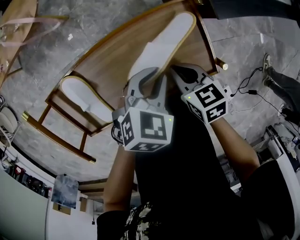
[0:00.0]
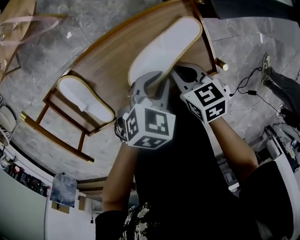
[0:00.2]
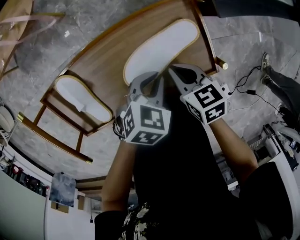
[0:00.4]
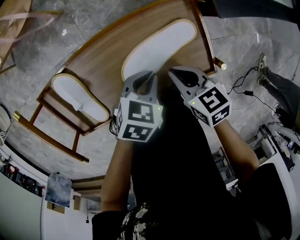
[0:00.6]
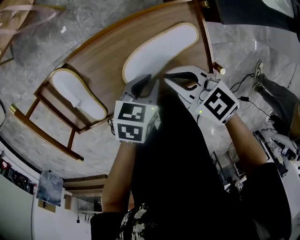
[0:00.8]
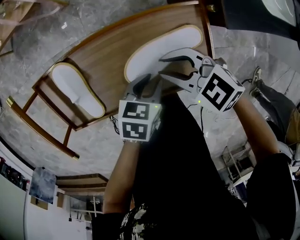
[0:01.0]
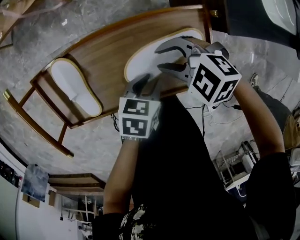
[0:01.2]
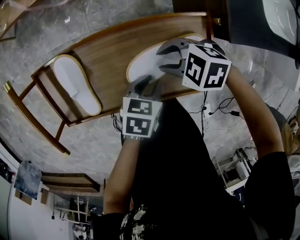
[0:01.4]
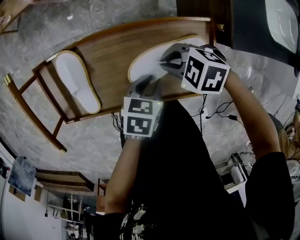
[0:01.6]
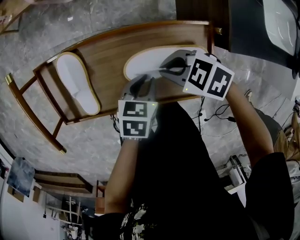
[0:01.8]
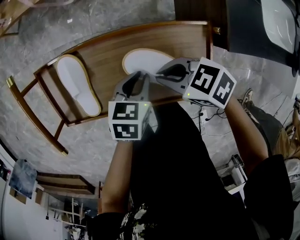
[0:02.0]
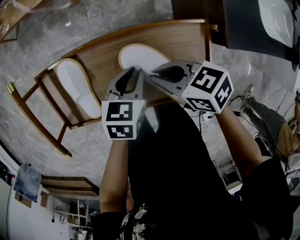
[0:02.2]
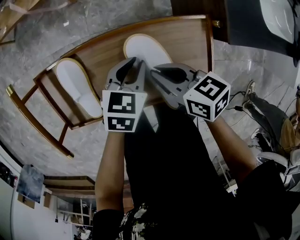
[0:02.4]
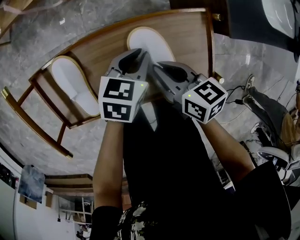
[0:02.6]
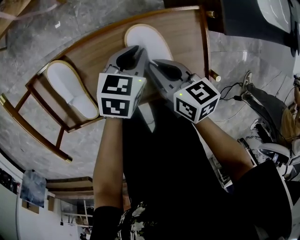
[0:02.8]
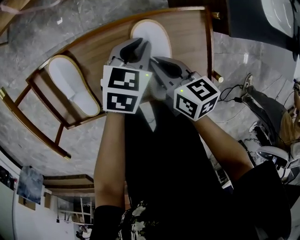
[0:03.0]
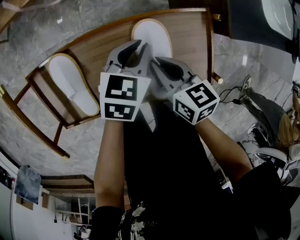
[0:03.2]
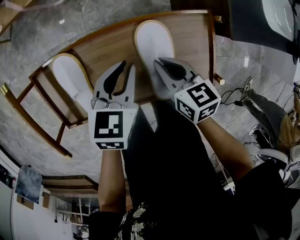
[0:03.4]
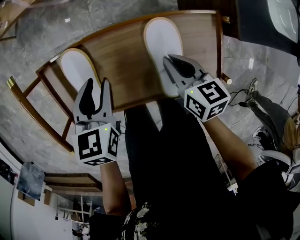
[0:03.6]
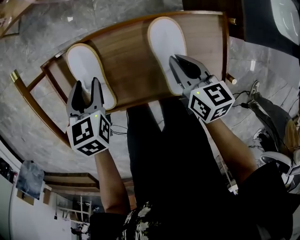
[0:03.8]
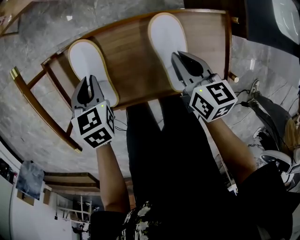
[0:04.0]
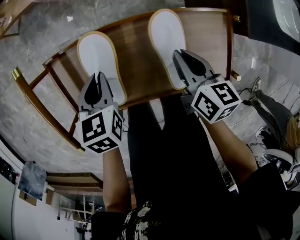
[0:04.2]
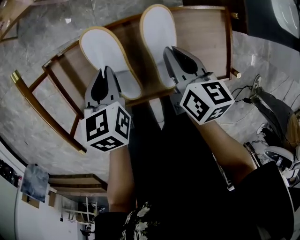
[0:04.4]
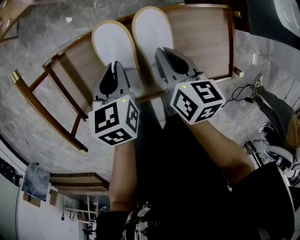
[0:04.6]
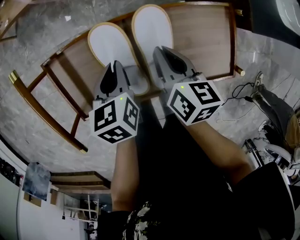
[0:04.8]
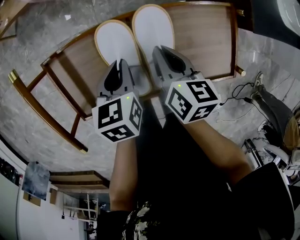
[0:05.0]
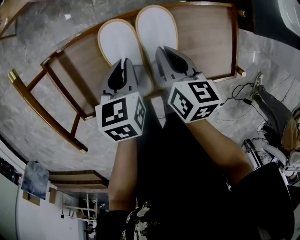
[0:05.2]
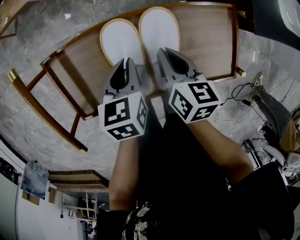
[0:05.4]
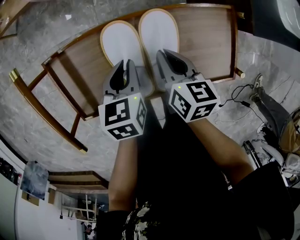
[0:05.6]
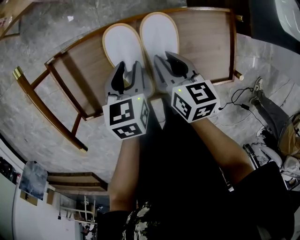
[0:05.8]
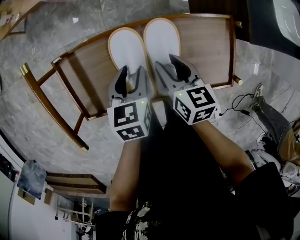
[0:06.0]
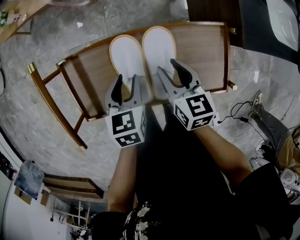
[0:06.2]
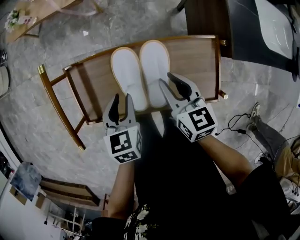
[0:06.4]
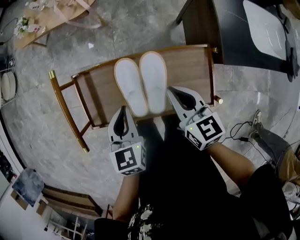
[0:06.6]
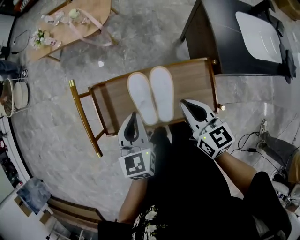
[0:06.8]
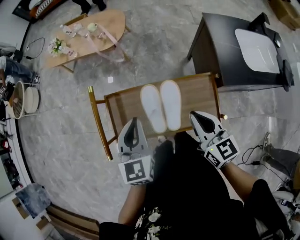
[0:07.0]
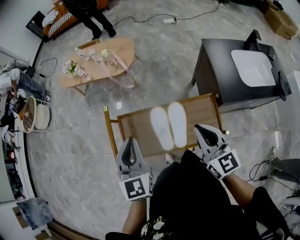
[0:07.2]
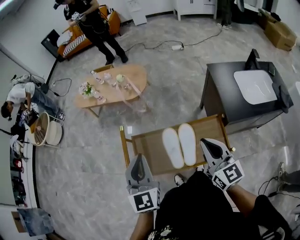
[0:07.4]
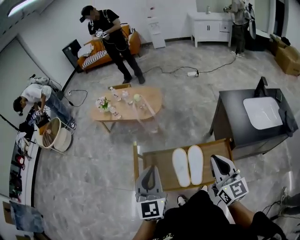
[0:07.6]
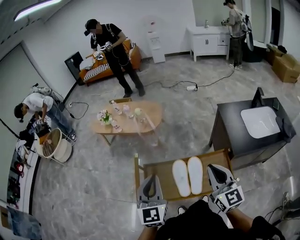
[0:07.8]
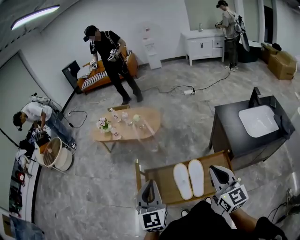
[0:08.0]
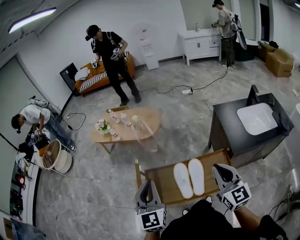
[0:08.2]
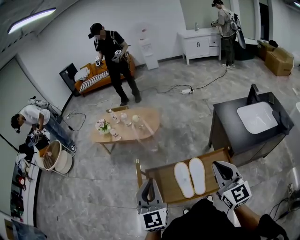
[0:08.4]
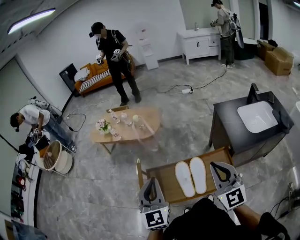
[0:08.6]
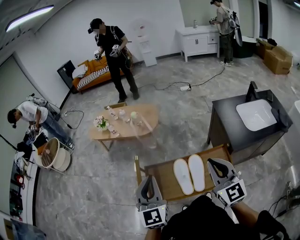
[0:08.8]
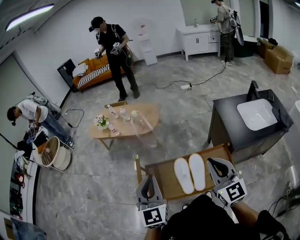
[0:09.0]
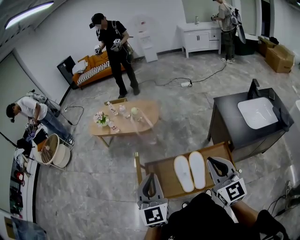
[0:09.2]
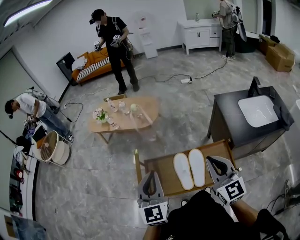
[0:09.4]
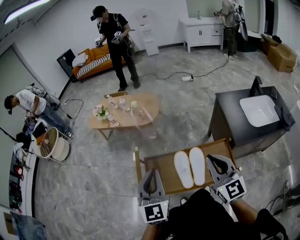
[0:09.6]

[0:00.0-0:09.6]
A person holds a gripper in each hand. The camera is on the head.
0:00.0 to 0:01.6: The right gripper shifts by about 5 cm, turns by some 70 degrees, and opens, then closes again. Meanwhile the left gripper goes roughly 5 cm downward, and rotates around the line of its fingers by some 40 degrees, counterclockwise from behind.
0:01.6 to 0:03.2: The left gripper shifts by about 10 cm, and turns by roughly 20 degrees. The right gripper changes its angle by approximately 70 degrees.
0:03.2 to 0:04.8: The right gripper travels to the left by some 5 cm, and changes its angle by about 20 degrees. The left gripper goes approximately 20 cm to the left, rotates some 40 degrees, and opens, then closes again.
0:04.8 to 0:06.4: The two grippers go approximately 5 cm upward. The right gripper turns by approximately 30 degrees, and opens its fingers; the left gripper opens up.
0:06.4 to 0:08.0: The two grippers go some 30 cm upward. The left gripper points its fingers about 40 degrees further upward, and closes. The right gripper points its fingers about 30 degrees further upward, and closes its fingers.
0:08.0 to 0:09.6: There are only small adjustments of the grippers.

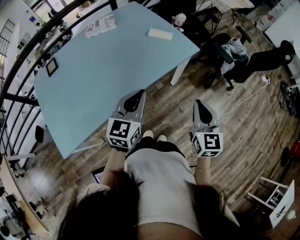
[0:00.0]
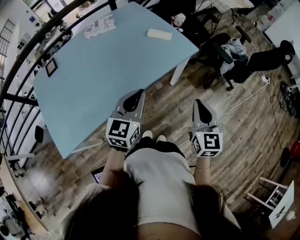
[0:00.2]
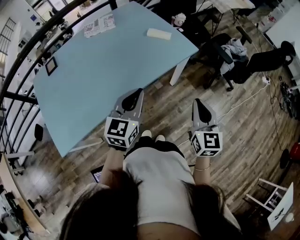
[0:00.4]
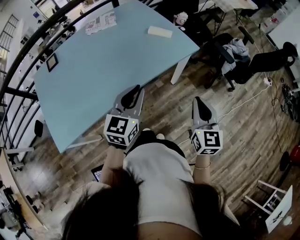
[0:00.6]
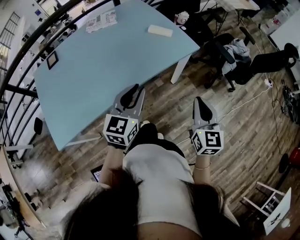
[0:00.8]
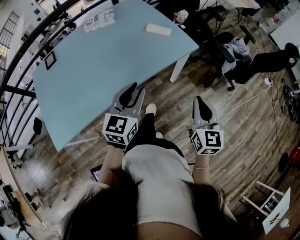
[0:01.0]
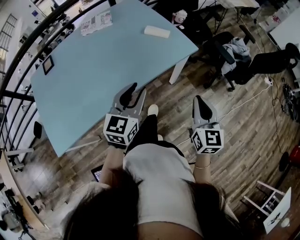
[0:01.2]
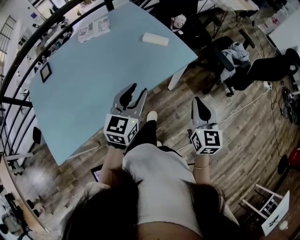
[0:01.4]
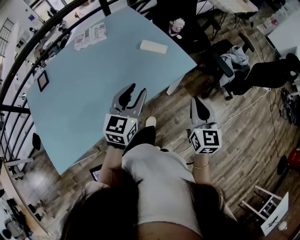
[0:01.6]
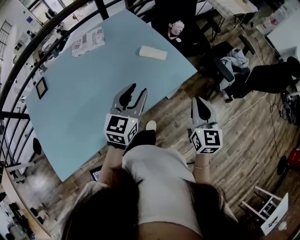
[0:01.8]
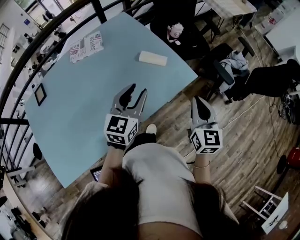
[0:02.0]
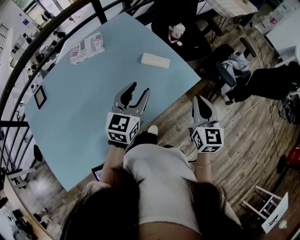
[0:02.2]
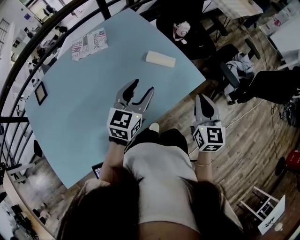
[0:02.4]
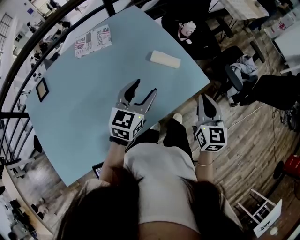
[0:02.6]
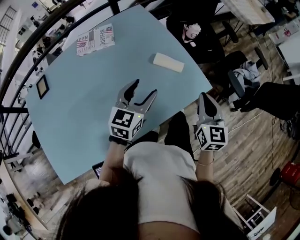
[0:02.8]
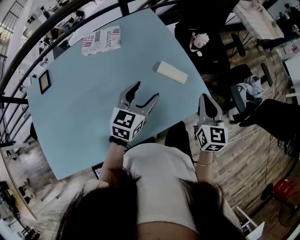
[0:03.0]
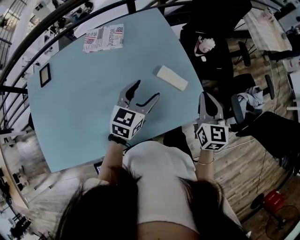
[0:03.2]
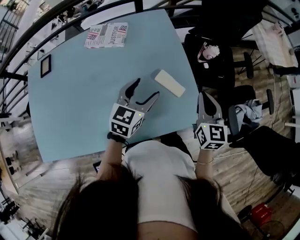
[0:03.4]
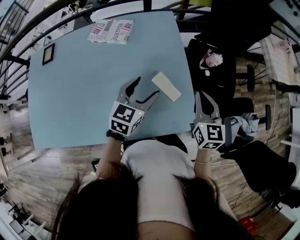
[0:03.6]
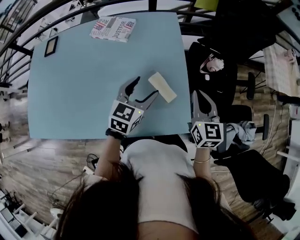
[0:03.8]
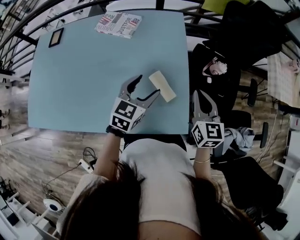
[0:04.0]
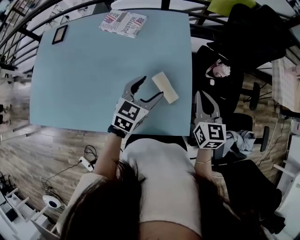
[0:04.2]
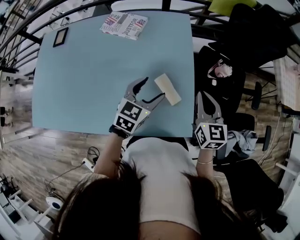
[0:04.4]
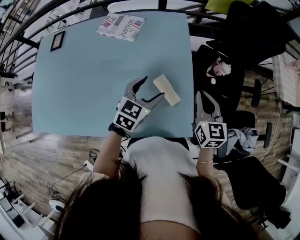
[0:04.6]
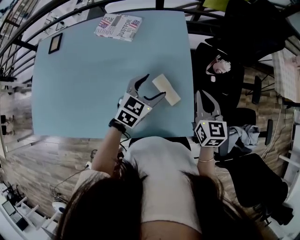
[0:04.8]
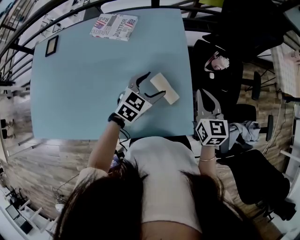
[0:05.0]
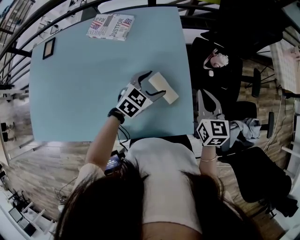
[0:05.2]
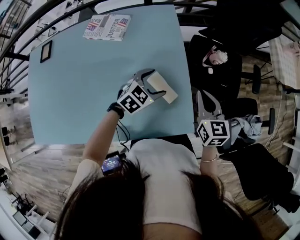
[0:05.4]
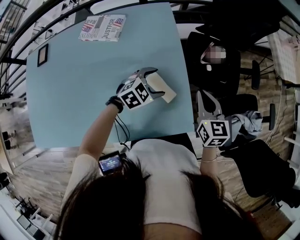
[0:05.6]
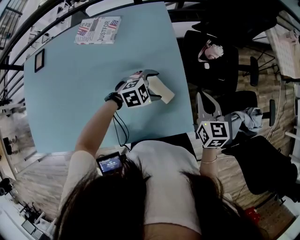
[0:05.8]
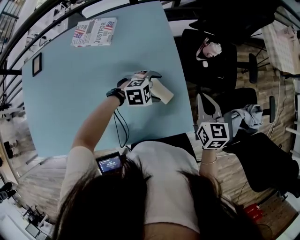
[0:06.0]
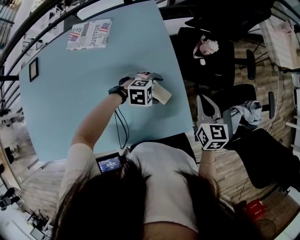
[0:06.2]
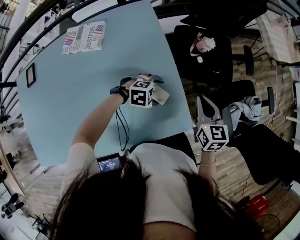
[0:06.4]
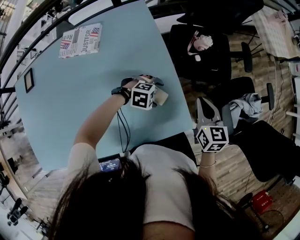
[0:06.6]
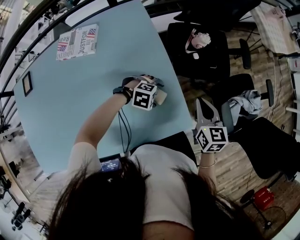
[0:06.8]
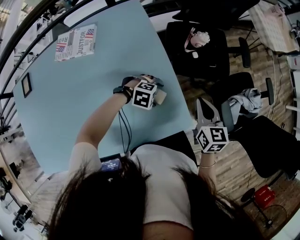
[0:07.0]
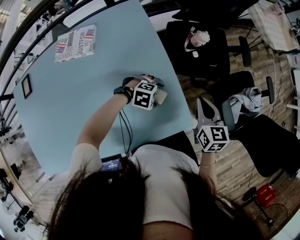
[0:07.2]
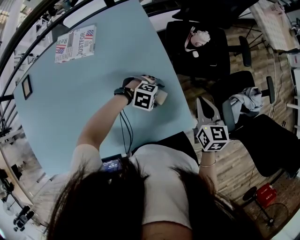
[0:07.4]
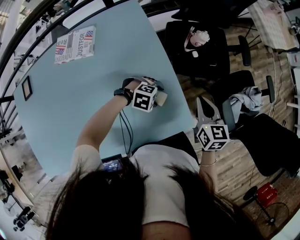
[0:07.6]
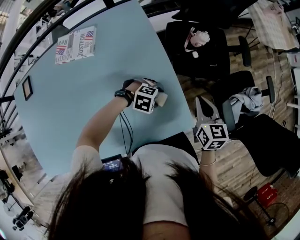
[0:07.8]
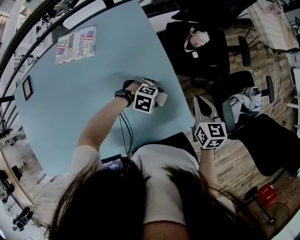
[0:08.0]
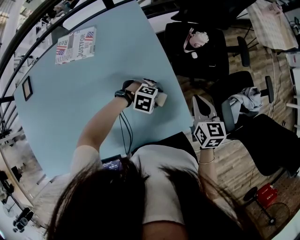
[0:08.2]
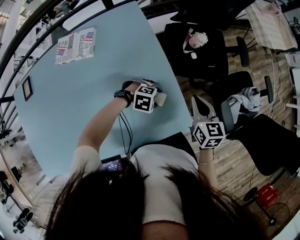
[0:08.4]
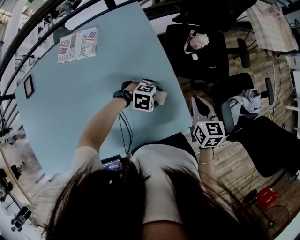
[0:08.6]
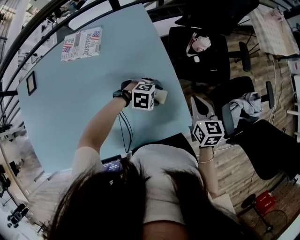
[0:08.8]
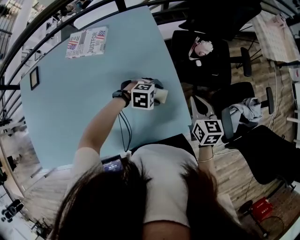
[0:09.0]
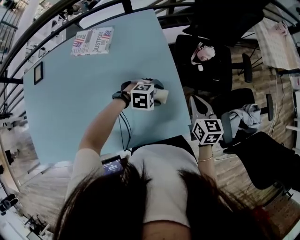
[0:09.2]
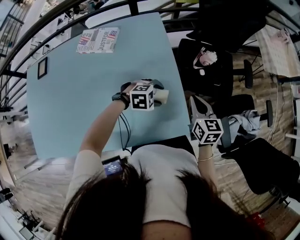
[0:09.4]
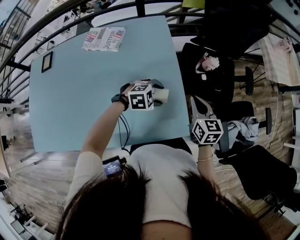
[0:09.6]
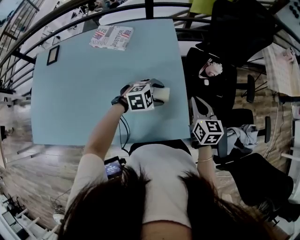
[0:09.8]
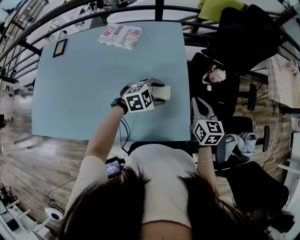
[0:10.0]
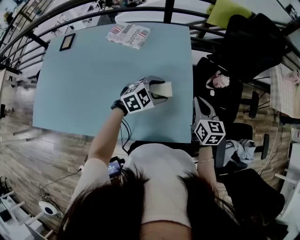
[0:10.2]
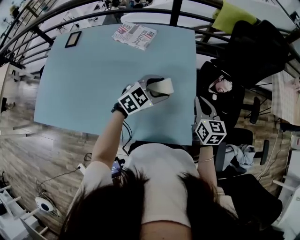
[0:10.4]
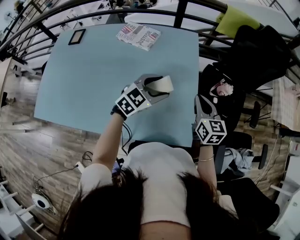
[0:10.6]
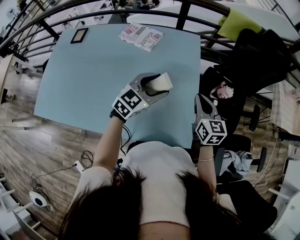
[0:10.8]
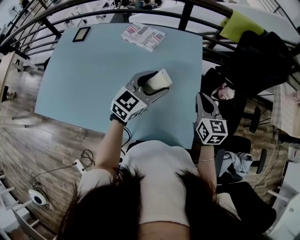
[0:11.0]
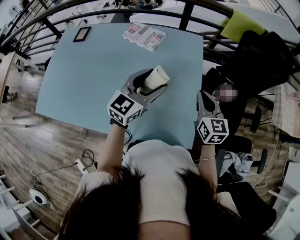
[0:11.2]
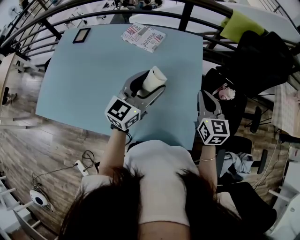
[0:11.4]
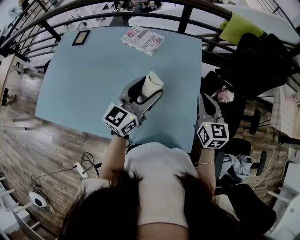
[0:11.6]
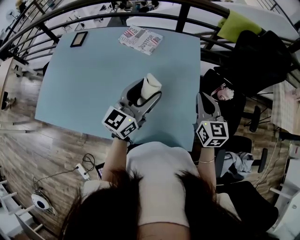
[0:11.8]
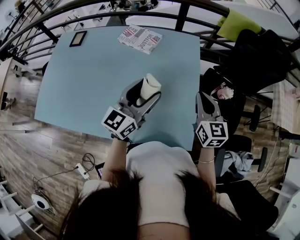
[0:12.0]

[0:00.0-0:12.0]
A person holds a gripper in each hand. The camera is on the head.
0:00.0 to 0:01.6: Both grippers move forward, approximately 15 cm.
0:01.6 to 0:03.0: The grippers both shift forward by roughly 20 cm. The left gripper opens its fingers.
0:03.0 to 0:04.4: The right gripper moves approximately 20 cm, and swivels some 30 degrees; the left gripper shifts by roughly 10 cm, and rotates approximately 20 degrees.
0:04.4 to 0:06.0: The left gripper travels downward by roughly 15 cm, and turns by some 70 degrees. Meanwhile the right gripper travels downward by some 5 cm.
0:06.0 to 0:07.6: The right gripper shifts by about 5 cm. Meanwhile the left gripper heads downward, covering about 5 cm, and turns by roughly 30 degrees.
0:07.6 to 0:09.0: The grippers stay close to where they were, moving slightly.
0:09.0 to 0:10.4: The right gripper ends up roughly 10 cm from where it was, and swivels some 20 degrees. Meanwhile the left gripper moves upward, approximately 15 cm, and changes its angle by about 60 degrees.
0:10.4 to 0:12.0: The left gripper shifts some 15 cm upward and to the left, and angles its fingers upward, by some 40 degrees. The right gripper moves upward, roughly 5 cm.

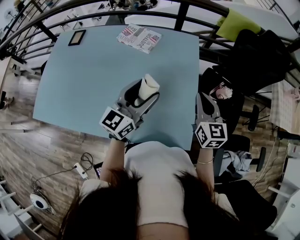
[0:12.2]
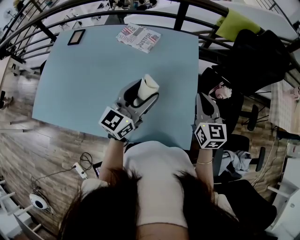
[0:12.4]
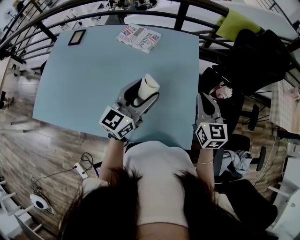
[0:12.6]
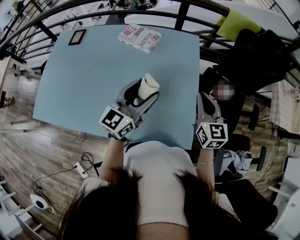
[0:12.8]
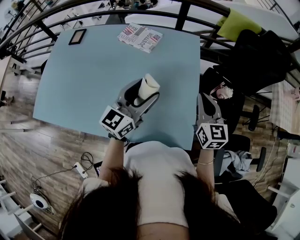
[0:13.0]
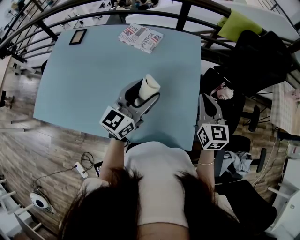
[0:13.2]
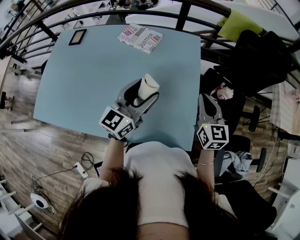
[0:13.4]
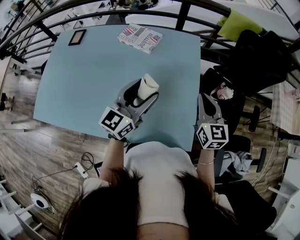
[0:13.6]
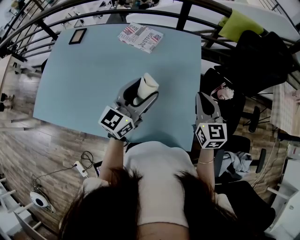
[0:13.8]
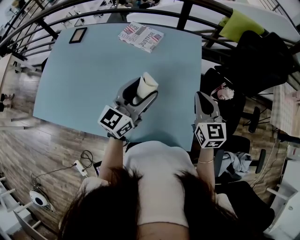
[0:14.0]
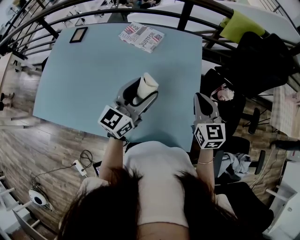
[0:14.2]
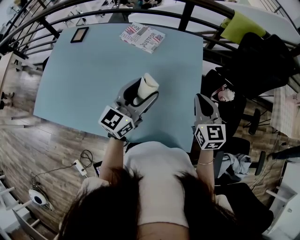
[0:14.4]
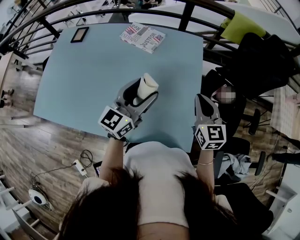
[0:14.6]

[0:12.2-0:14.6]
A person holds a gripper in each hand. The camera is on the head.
0:12.2 to 0:13.4: Neither gripper changes place.
0:13.4 to 0:14.6: The grippers make only small movements.
